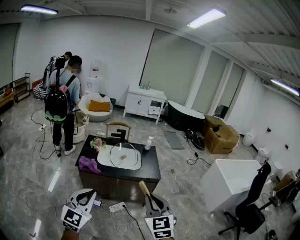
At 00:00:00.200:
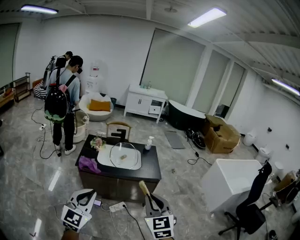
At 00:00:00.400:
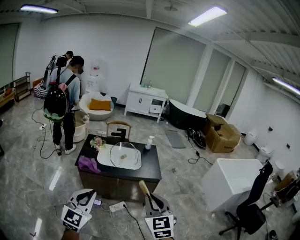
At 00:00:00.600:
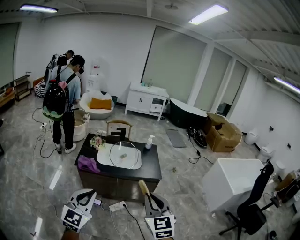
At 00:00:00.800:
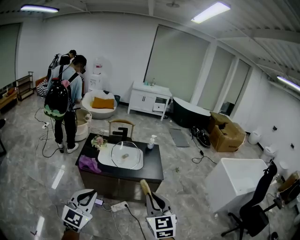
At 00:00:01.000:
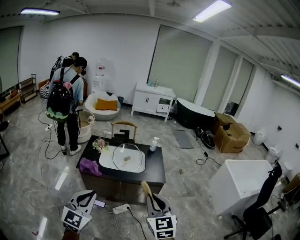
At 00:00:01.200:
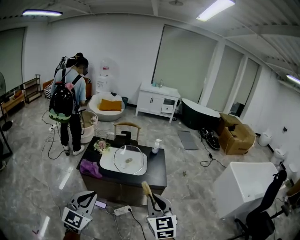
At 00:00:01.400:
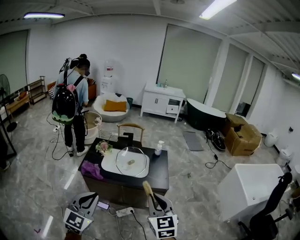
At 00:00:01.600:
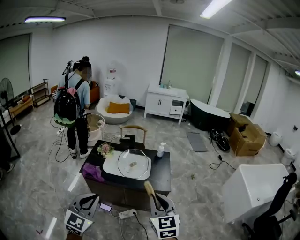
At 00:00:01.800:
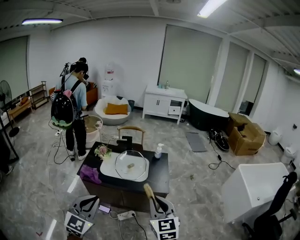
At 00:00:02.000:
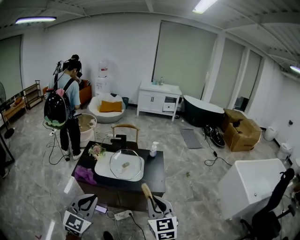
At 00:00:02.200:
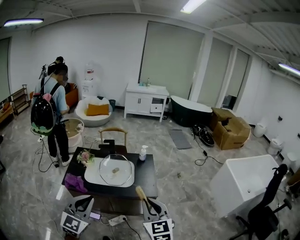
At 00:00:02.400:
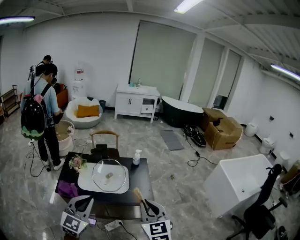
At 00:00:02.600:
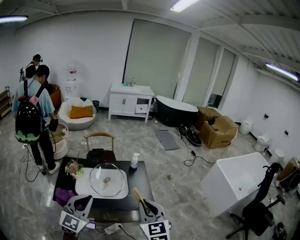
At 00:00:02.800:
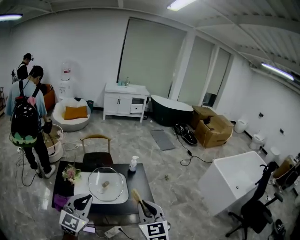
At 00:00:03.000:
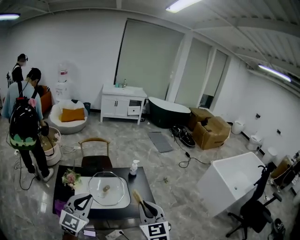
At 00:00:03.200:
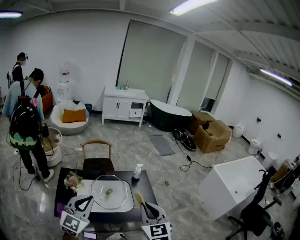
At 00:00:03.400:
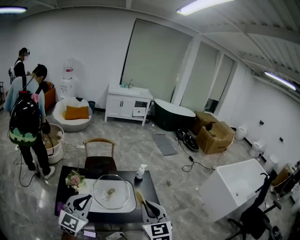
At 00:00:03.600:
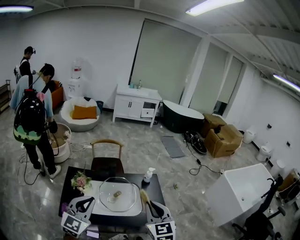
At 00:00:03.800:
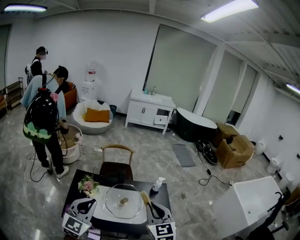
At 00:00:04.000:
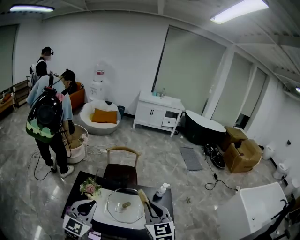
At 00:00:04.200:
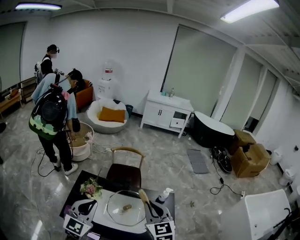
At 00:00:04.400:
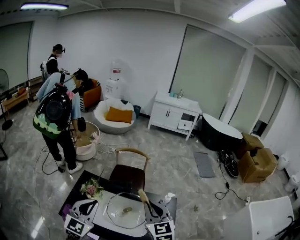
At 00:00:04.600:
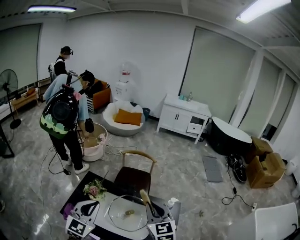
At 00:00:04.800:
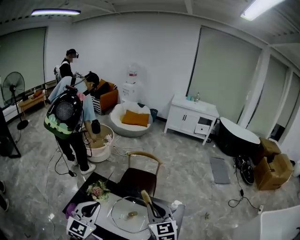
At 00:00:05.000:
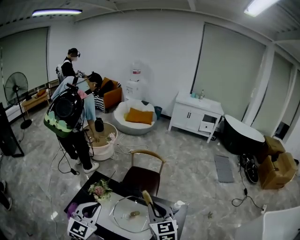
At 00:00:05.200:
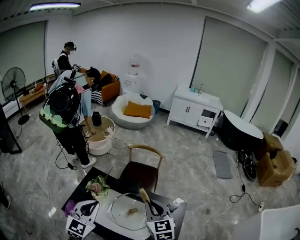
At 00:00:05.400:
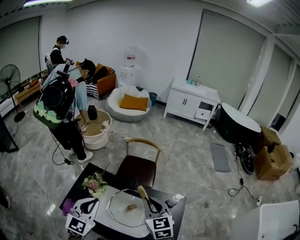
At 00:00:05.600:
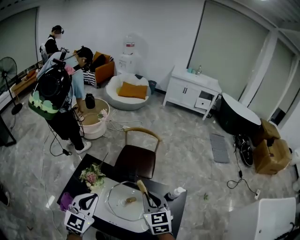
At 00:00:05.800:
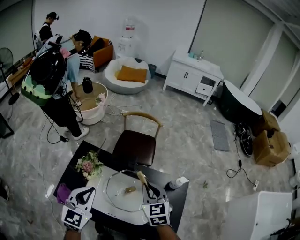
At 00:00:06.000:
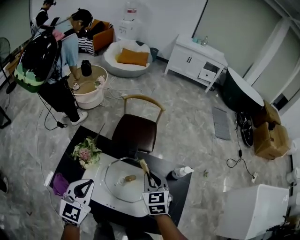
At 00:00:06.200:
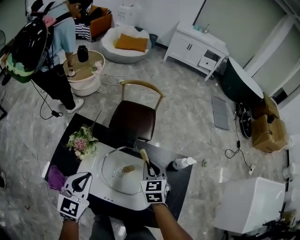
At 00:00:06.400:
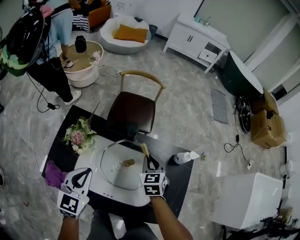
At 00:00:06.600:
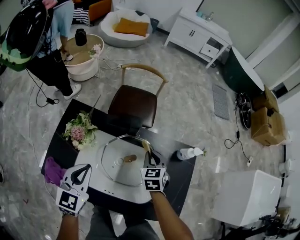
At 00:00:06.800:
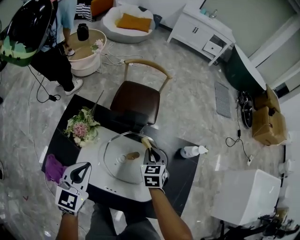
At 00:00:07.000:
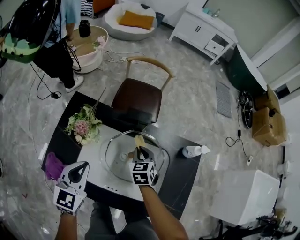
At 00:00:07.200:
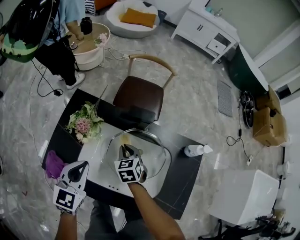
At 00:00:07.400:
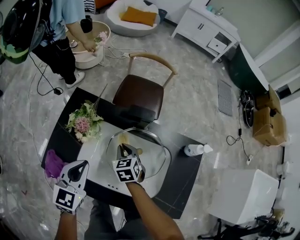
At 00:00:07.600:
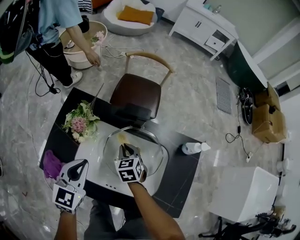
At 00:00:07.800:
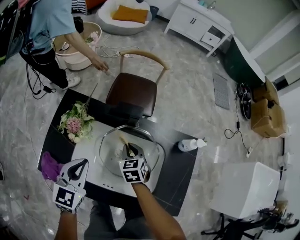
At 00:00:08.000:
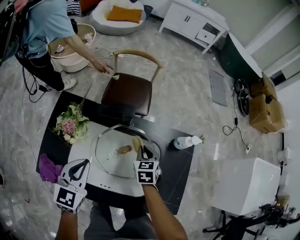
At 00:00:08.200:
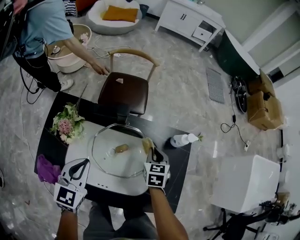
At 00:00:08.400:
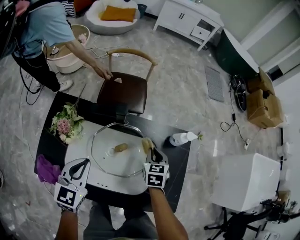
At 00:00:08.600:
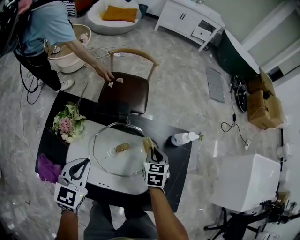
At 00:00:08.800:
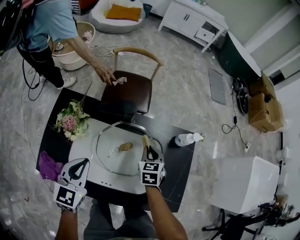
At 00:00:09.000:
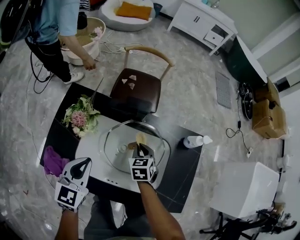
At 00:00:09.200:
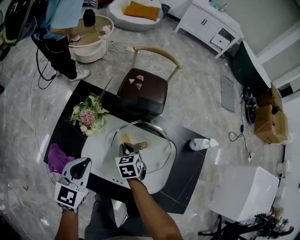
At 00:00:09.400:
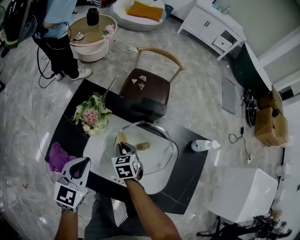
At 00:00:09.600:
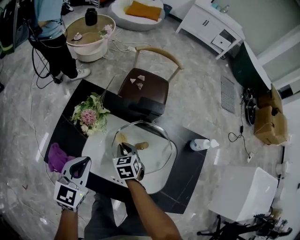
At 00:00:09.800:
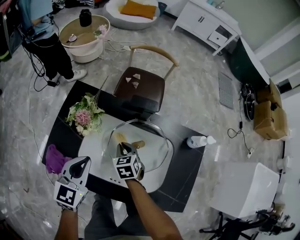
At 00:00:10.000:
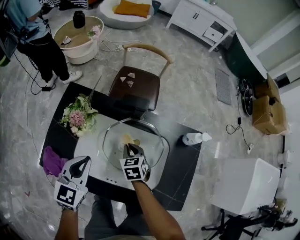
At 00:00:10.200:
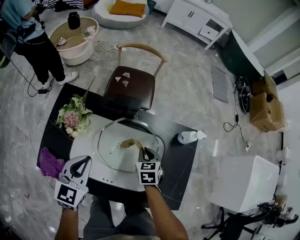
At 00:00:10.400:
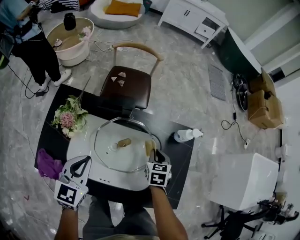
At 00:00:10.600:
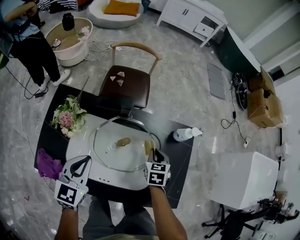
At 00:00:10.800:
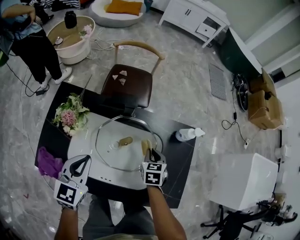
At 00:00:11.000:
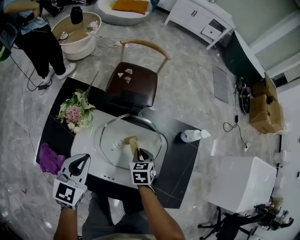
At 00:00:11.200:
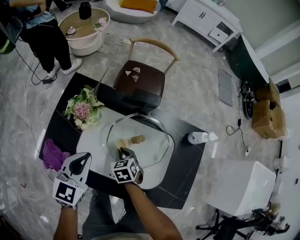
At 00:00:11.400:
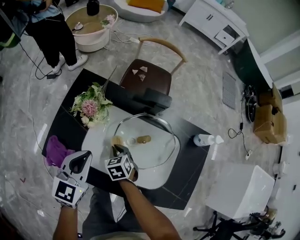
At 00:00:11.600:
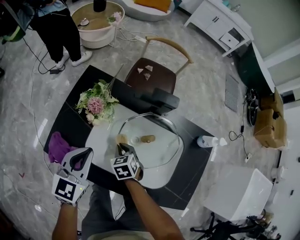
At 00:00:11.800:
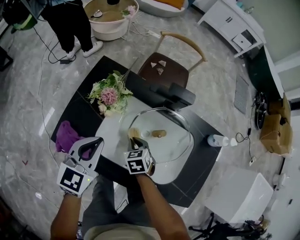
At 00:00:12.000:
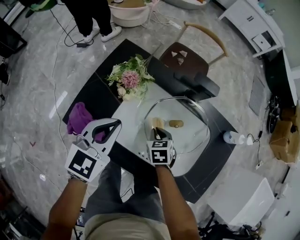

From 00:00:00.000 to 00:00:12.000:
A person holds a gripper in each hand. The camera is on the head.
From 00:00:00.000 to 00:00:01.600: The grippers both shift forward and to the right by approximately 15 cm.
From 00:00:01.600 to 00:00:03.000: Both grippers travel together forward, some 25 cm.
From 00:00:03.000 to 00:00:04.400: The left gripper heads forward and to the left, covering some 15 cm, and changes its angle by some 20 degrees; the right gripper moves forward, approximately 25 cm, and rotates some 20 degrees.
From 00:00:04.400 to 00:00:06.000: The right gripper travels downward and forward by about 25 cm; the left gripper heads downward, covering some 15 cm.
From 00:00:06.000 to 00:00:07.600: The left gripper shifts roughly 10 cm downward; the right gripper shifts about 25 cm downward and to the left.
From 00:00:07.600 to 00:00:09.000: The right gripper is displaced to the right by some 10 cm.
From 00:00:09.000 to 00:00:10.400: The right gripper moves to the right, some 15 cm.
From 00:00:10.400 to 00:00:12.000: The right gripper moves roughly 25 cm, and rotates roughly 30 degrees. The left gripper changes place by roughly 10 cm.

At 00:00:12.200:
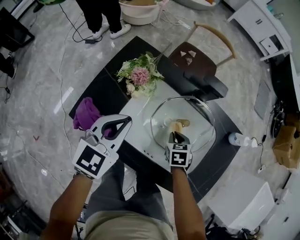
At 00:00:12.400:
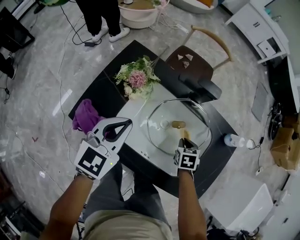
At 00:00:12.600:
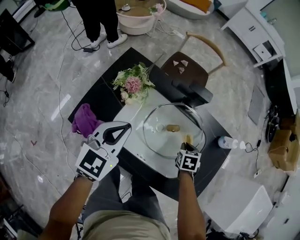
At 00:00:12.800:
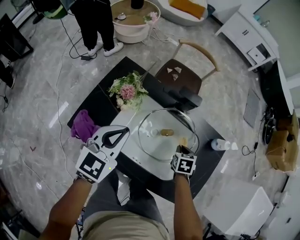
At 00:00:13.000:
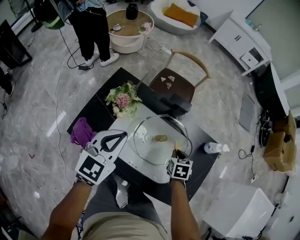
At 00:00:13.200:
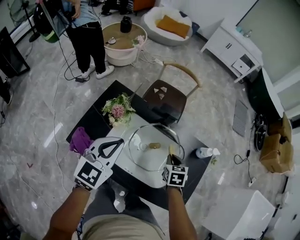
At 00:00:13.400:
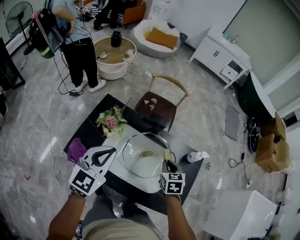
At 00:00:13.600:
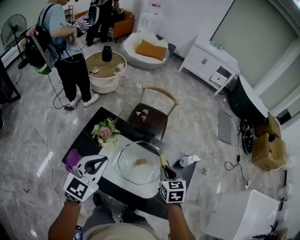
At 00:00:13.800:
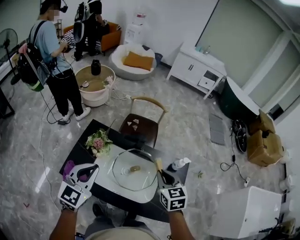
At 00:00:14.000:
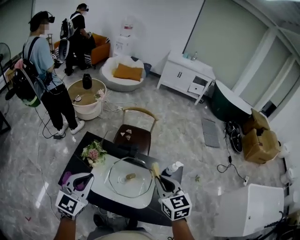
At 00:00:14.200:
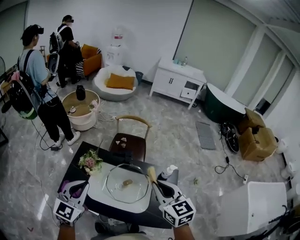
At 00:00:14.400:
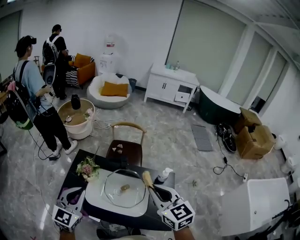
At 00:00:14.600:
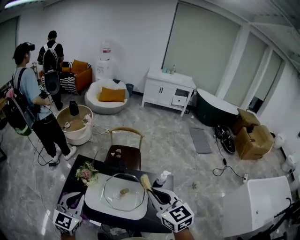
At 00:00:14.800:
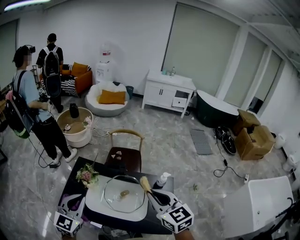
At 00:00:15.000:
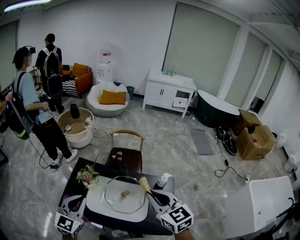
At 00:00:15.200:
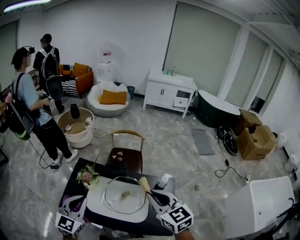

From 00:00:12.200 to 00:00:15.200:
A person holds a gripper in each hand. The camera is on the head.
From 00:00:12.200 to 00:00:13.800: The left gripper travels upward by about 20 cm; the right gripper travels upward by roughly 35 cm, and angles its fingers upward, by some 30 degrees.
From 00:00:13.800 to 00:00:15.200: The left gripper ends up approximately 5 cm from where it was. The right gripper travels upward and backward by some 15 cm.

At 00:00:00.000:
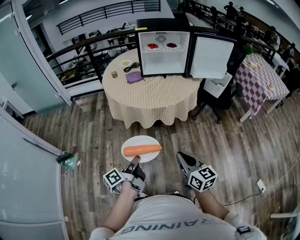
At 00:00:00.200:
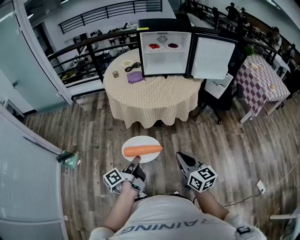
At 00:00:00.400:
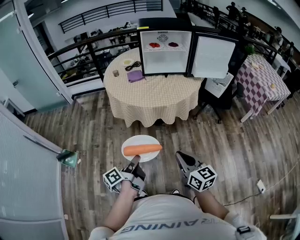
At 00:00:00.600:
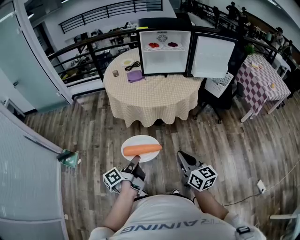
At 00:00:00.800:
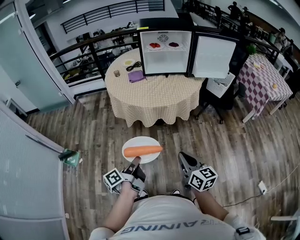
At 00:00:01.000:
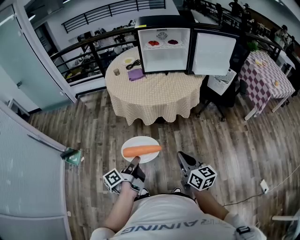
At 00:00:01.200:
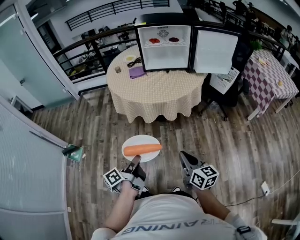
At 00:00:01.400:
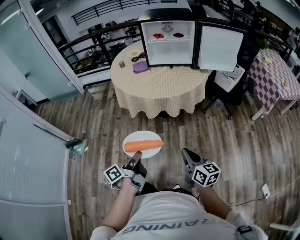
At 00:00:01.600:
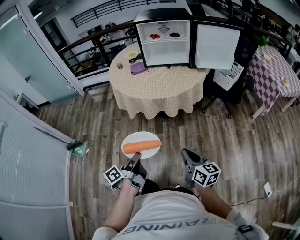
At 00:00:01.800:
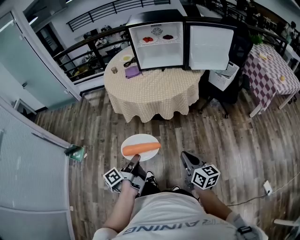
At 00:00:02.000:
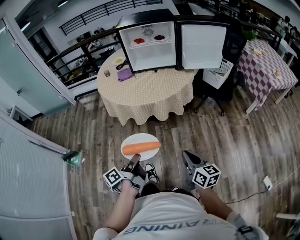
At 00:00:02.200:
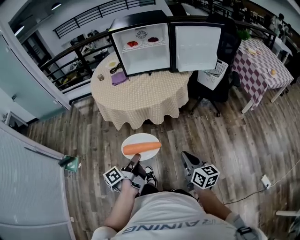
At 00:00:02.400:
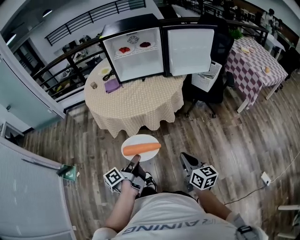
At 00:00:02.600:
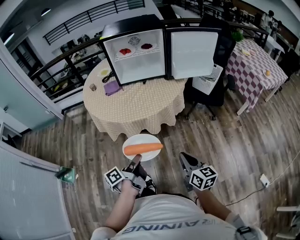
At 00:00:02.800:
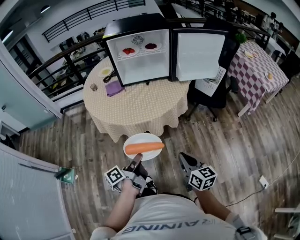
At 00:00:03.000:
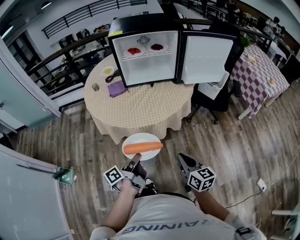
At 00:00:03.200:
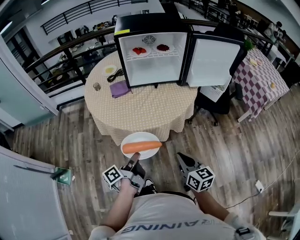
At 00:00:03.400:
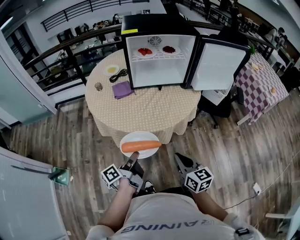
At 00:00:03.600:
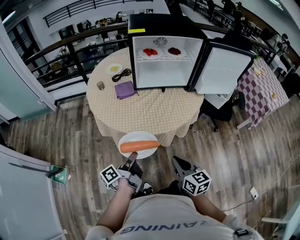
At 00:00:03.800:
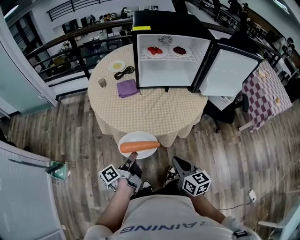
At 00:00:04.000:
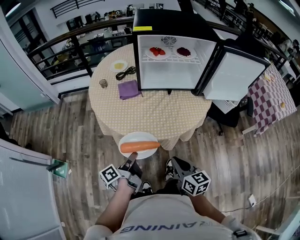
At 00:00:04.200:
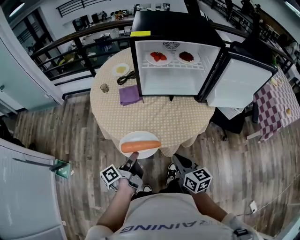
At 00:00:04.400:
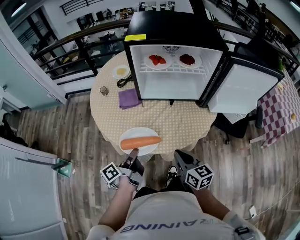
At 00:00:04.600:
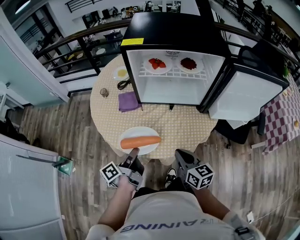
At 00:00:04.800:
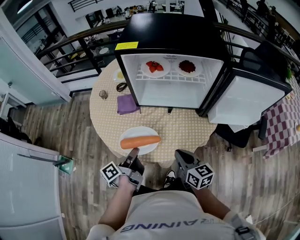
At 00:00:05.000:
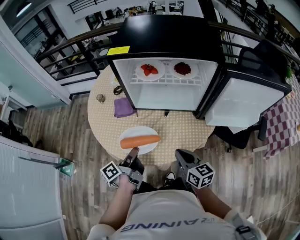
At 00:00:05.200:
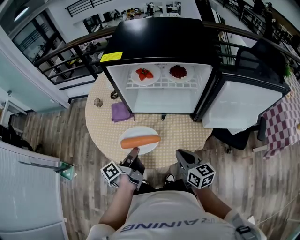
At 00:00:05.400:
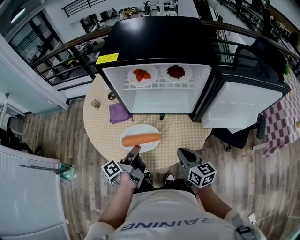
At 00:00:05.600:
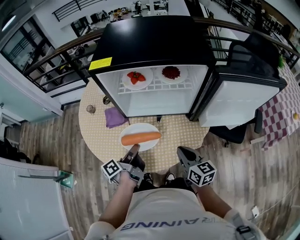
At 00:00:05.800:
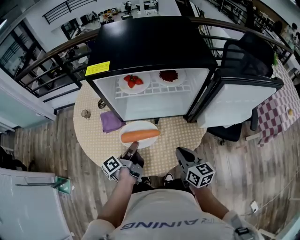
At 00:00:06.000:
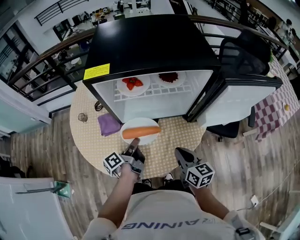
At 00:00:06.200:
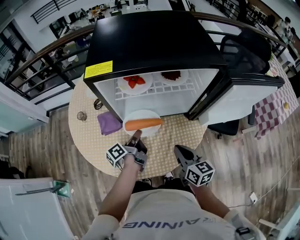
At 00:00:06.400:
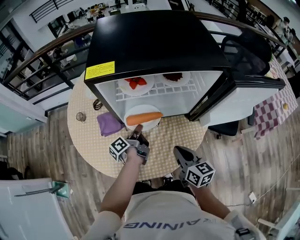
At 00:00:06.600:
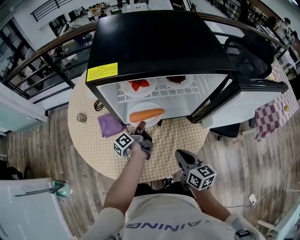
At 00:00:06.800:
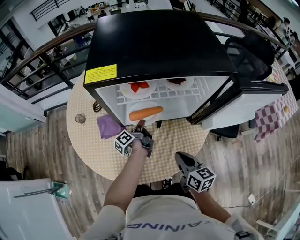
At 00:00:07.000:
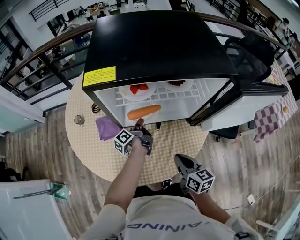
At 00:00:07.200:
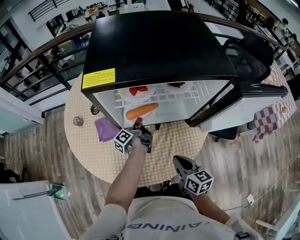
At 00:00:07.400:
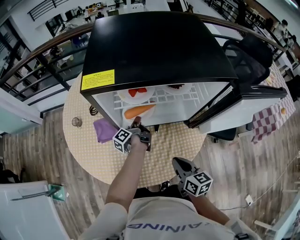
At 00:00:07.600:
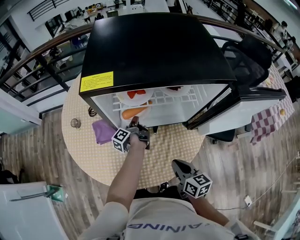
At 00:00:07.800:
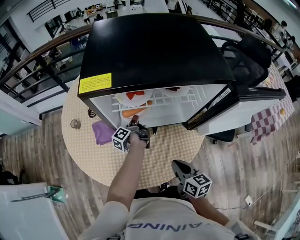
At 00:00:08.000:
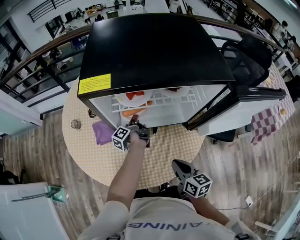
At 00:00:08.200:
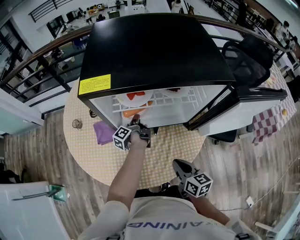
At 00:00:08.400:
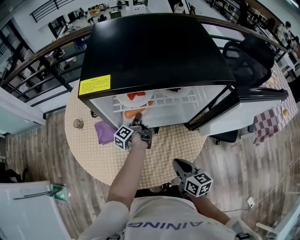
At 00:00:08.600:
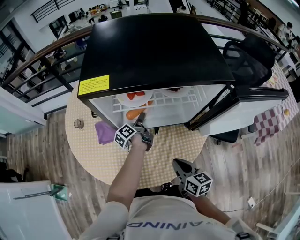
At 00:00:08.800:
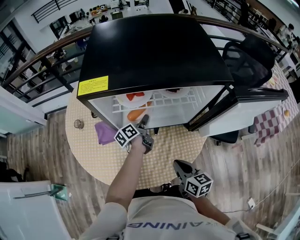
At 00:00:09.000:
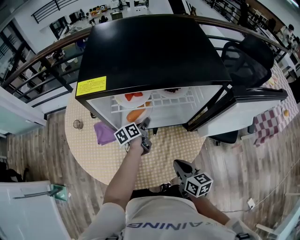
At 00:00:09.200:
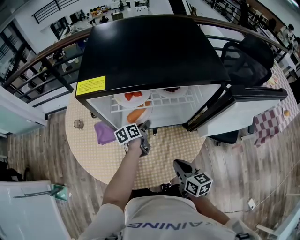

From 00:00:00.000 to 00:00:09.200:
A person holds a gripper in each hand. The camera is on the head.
From 00:00:00.000 to 00:00:01.600: The right gripper shifts by roughly 10 cm.
From 00:00:01.600 to 00:00:03.000: The right gripper shifts by about 15 cm.
From 00:00:03.000 to 00:00:04.600: The right gripper changes place by about 30 cm.
From 00:00:04.600 to 00:00:06.200: The right gripper shifts by about 10 cm.
